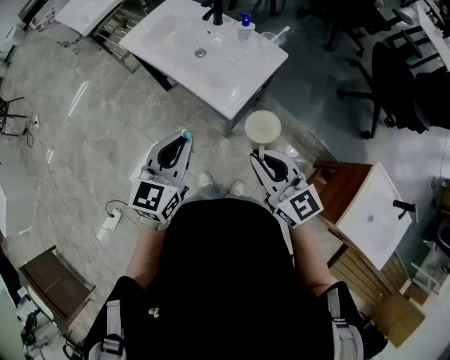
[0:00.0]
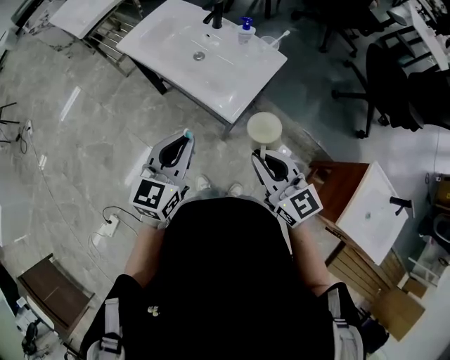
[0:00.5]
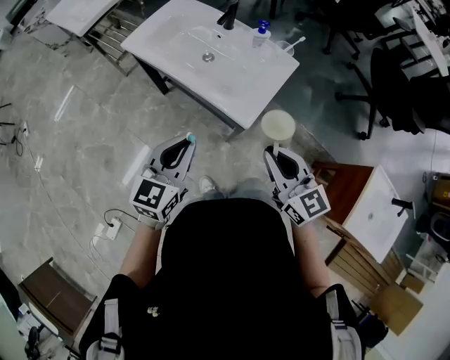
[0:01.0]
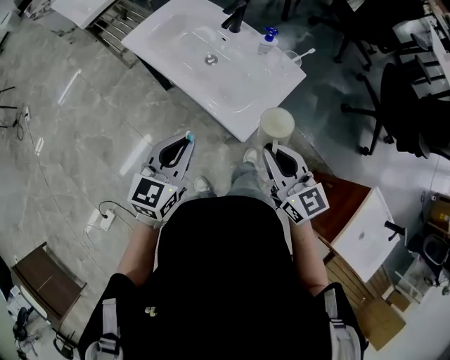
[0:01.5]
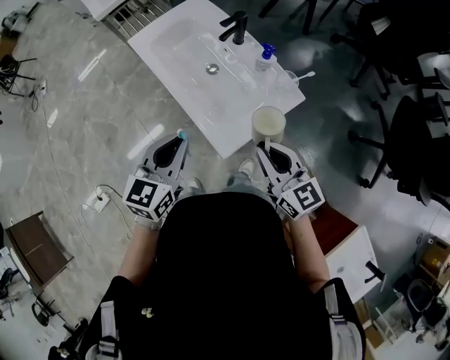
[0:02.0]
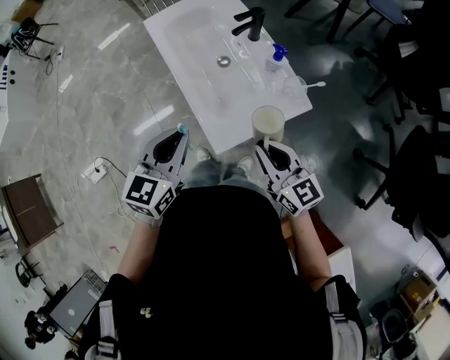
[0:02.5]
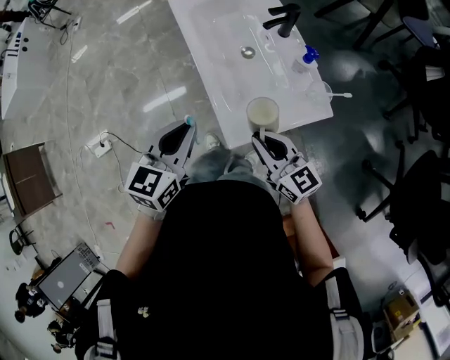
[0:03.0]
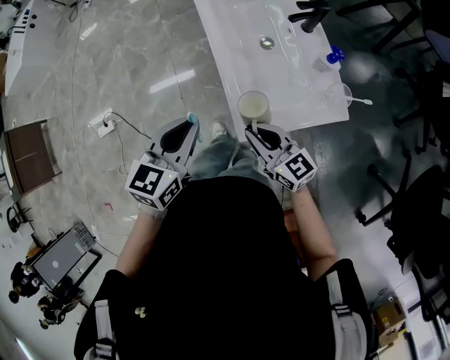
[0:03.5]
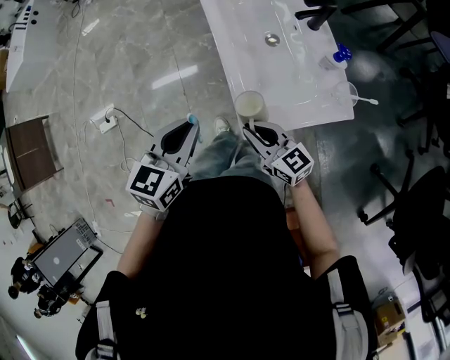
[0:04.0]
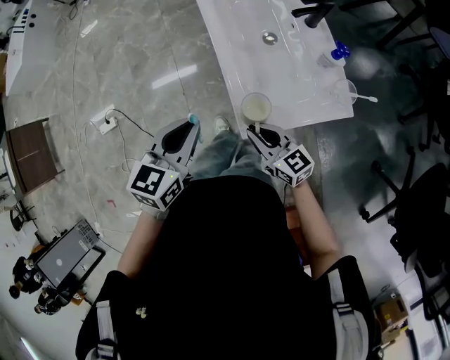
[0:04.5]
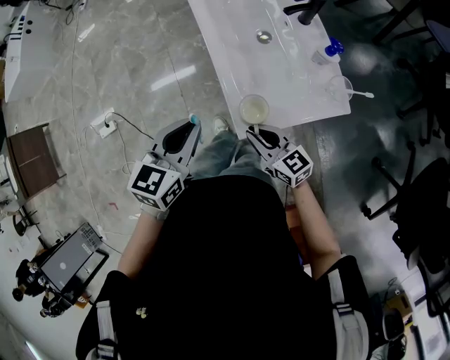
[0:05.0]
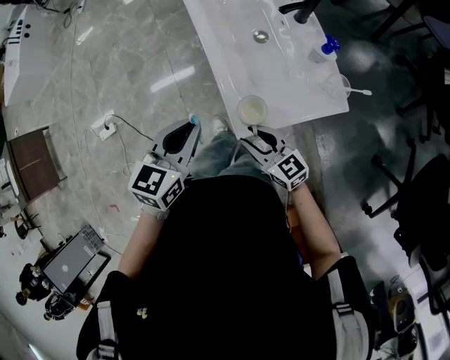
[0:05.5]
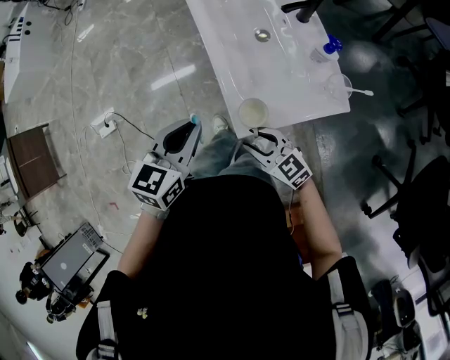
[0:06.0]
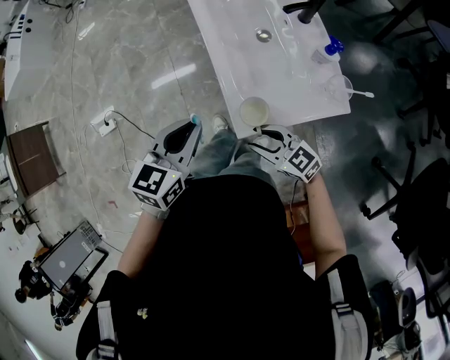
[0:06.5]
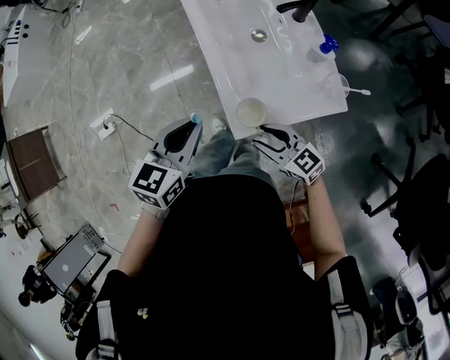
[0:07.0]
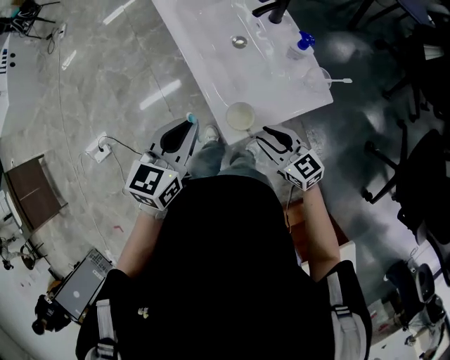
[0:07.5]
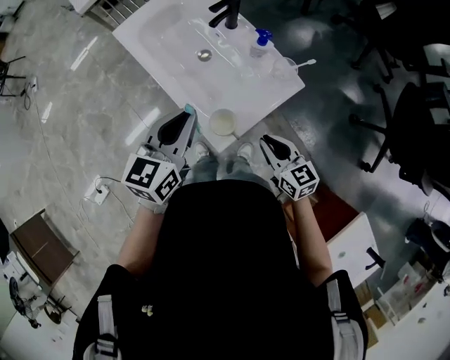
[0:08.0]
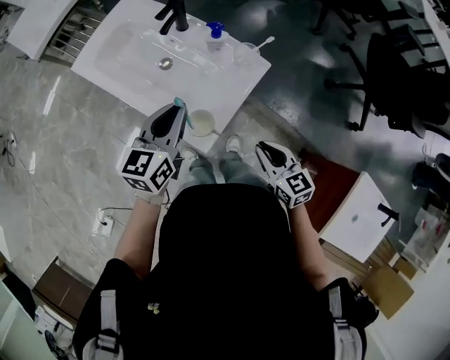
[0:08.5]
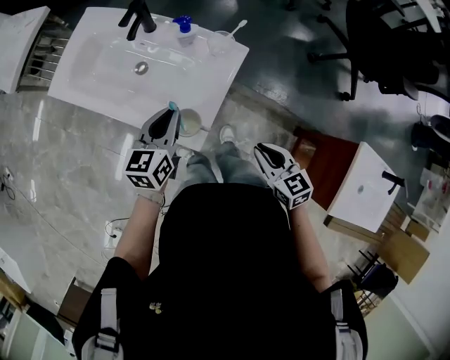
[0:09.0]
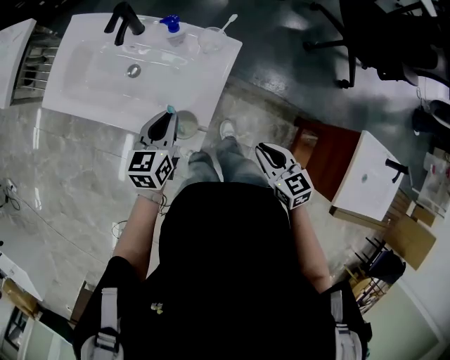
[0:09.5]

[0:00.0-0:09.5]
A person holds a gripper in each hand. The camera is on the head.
0:00.0 to 0:02.0: The two grippers go about 15 cm forward.
0:02.0 to 0:04.0: The right gripper travels downward by some 15 cm, and turns by approximately 40 degrees, while the left gripper shifts by about 5 cm, and changes its angle by about 20 degrees.
0:04.0 to 0:05.5: The right gripper opens its fingers.
0:05.5 to 0:07.5: The right gripper heads to the right, covering about 10 cm.
0:07.5 to 0:09.5: The left gripper shifts by roughly 15 cm, and swivels about 30 degrees, while the right gripper changes place by roughly 15 cm, swivels roughly 60 degrees, and closes up.

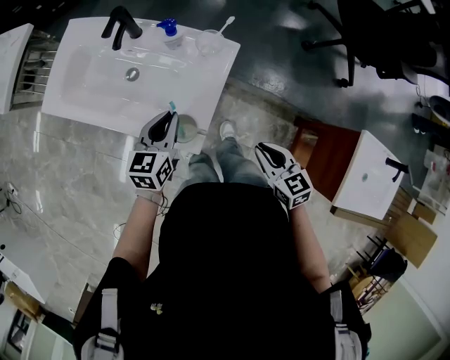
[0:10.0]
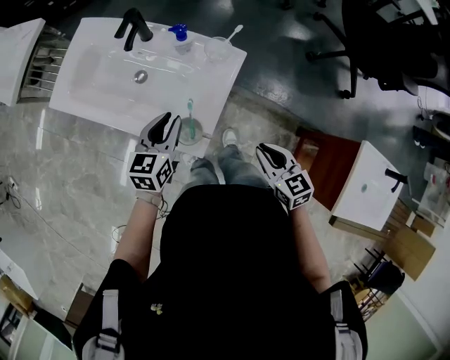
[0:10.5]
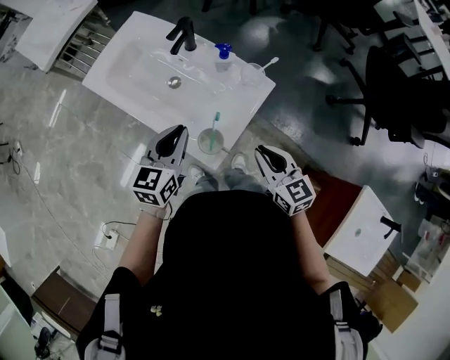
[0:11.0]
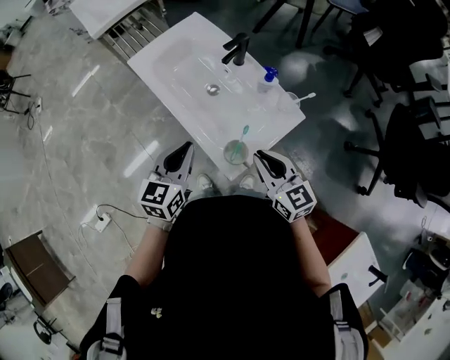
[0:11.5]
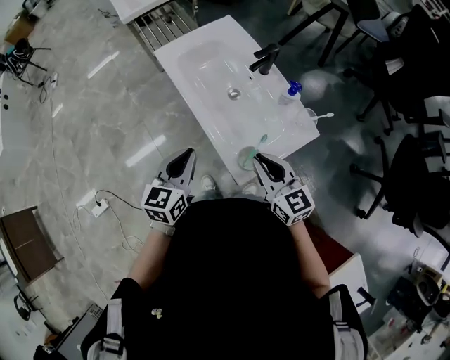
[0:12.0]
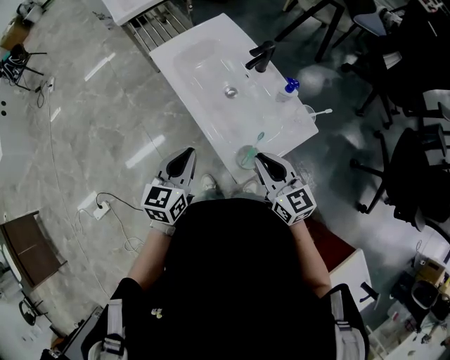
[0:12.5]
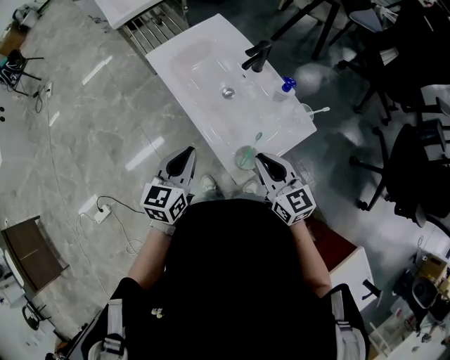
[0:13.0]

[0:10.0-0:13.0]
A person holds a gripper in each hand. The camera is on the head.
0:10.0 to 0:11.5: The right gripper ends up about 20 cm from where it was, and swivels some 40 degrees. Meanwhile the left gripper moves roughly 15 cm, and turns by approximately 30 degrees.
0:11.5 to 0:13.0: The grippers stay close to where they were, moving slightly.

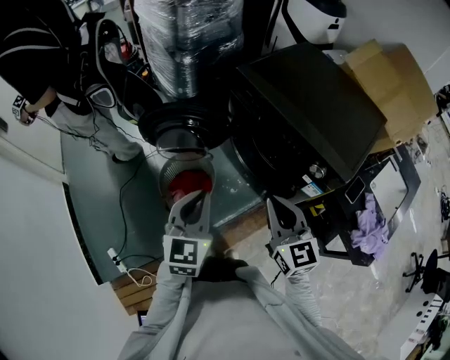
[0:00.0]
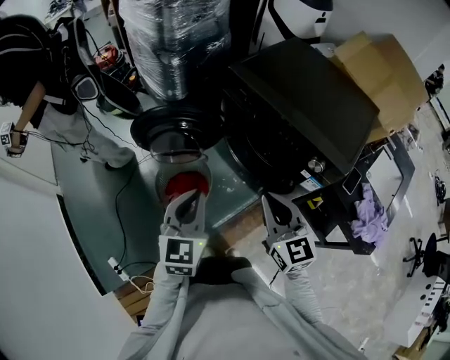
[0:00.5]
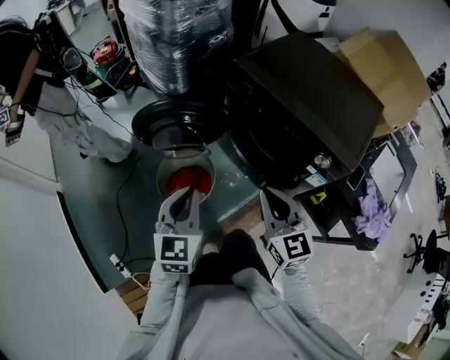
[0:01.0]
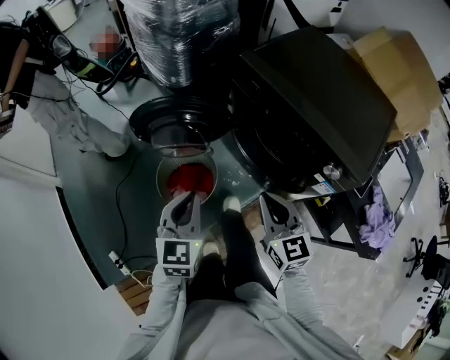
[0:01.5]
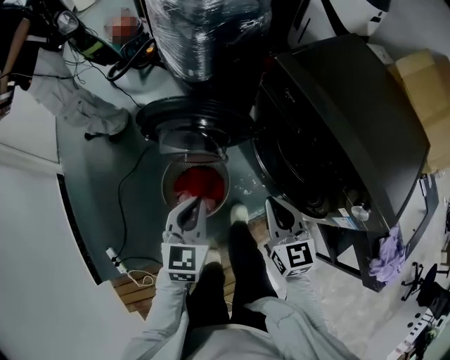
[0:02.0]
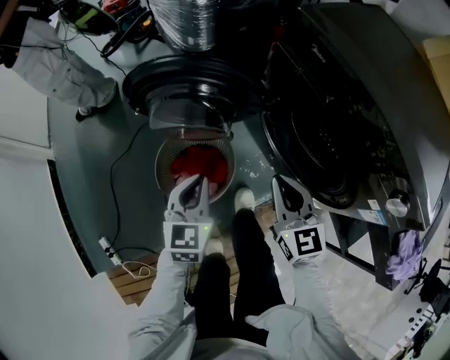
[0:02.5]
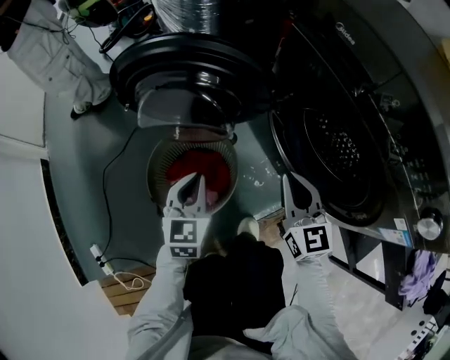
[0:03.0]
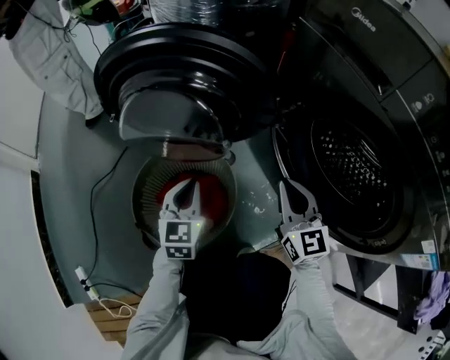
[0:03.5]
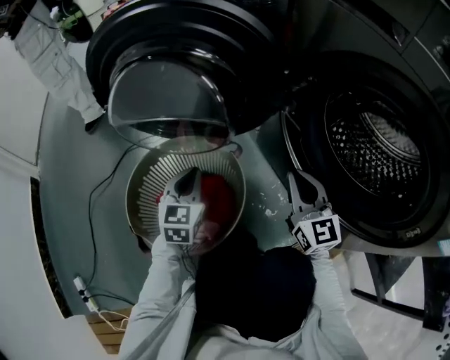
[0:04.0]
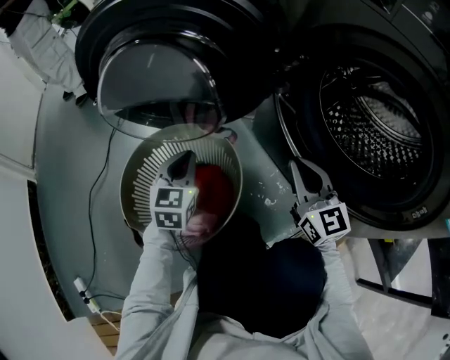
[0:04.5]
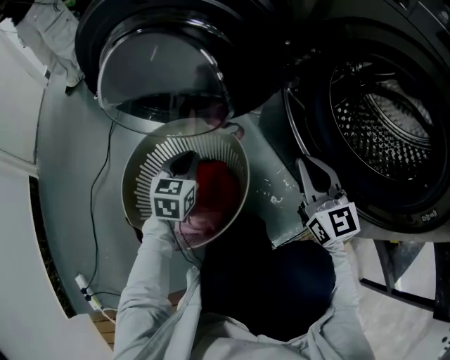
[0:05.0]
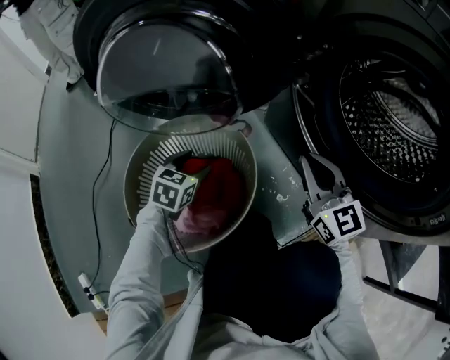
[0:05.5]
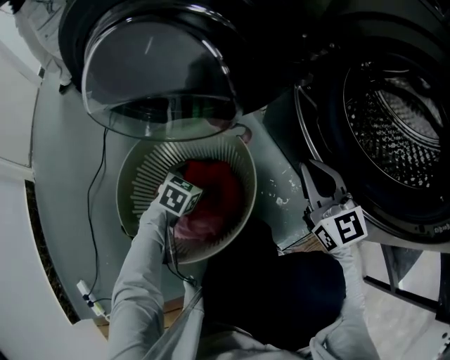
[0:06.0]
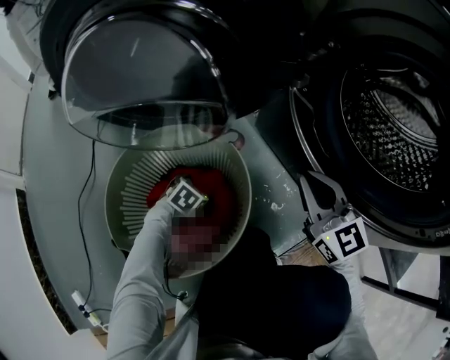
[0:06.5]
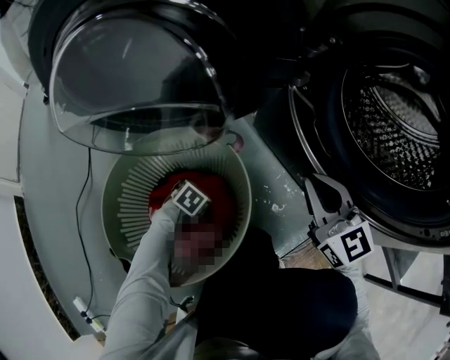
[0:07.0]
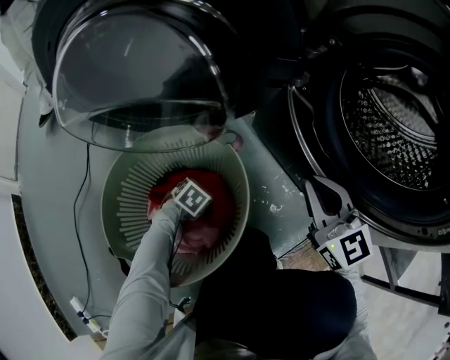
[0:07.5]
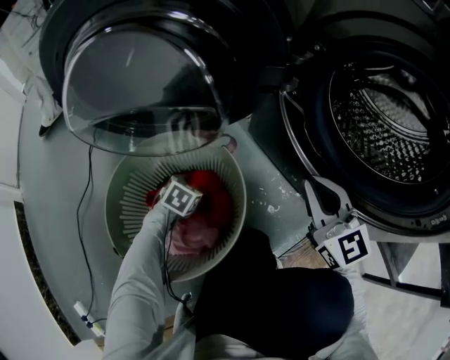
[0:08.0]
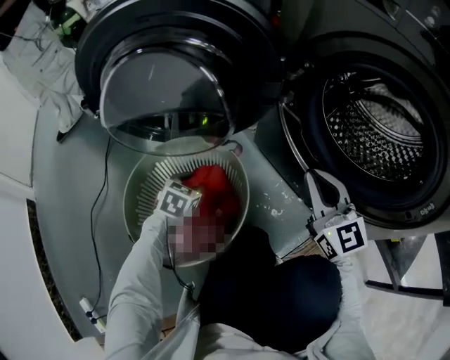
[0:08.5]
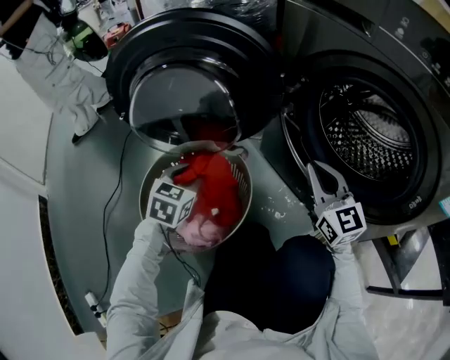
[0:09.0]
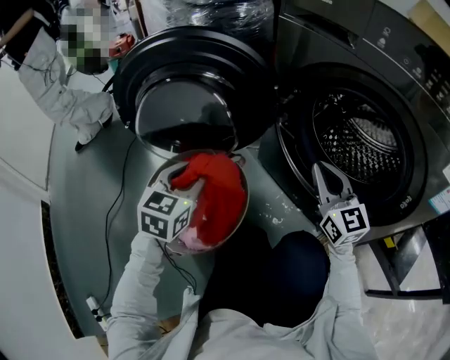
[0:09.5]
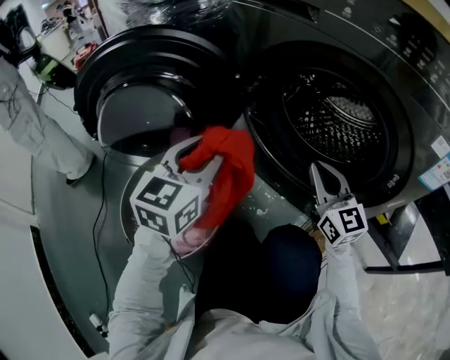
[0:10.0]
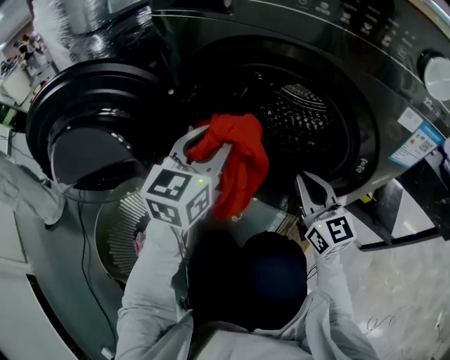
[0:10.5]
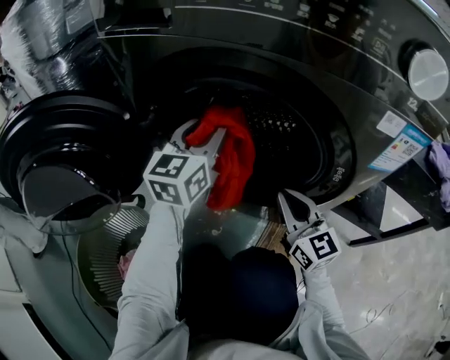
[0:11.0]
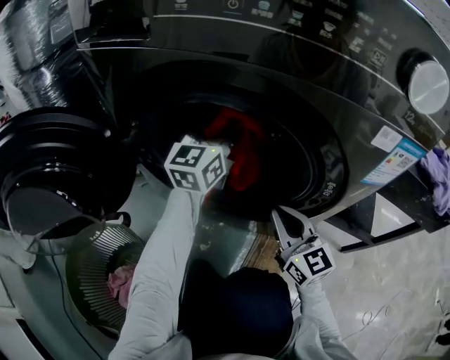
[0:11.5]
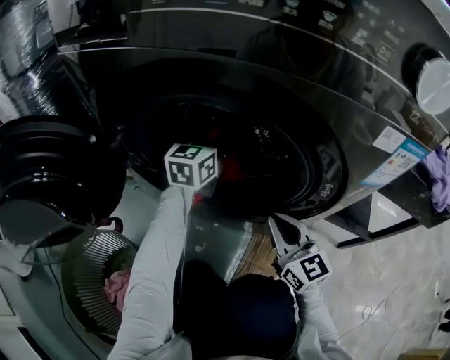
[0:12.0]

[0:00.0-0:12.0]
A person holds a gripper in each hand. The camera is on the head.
0:00.0 to 0:02.0: Both grippers move downward, forward and to the left, about 20 cm.
0:02.0 to 0:04.0: The grippers both shift downward by roughly 40 cm.
0:04.0 to 0:06.0: The left gripper shifts roughly 20 cm downward, tips its fingers downward by roughly 30 degrees, and opens its fingers.
0:06.0 to 0:08.0: The left gripper closes up.
0:08.0 to 0:10.0: The left gripper heads upward, covering roughly 40 cm, and angles its fingers upward, by approximately 50 degrees, while the right gripper is displaced to the right and upward by about 10 cm.
0:10.0 to 0:12.0: The left gripper is displaced forward and to the right by approximately 40 cm, and swivels some 30 degrees; the right gripper travels to the right and downward by some 15 cm, and swivels approximately 20 degrees.

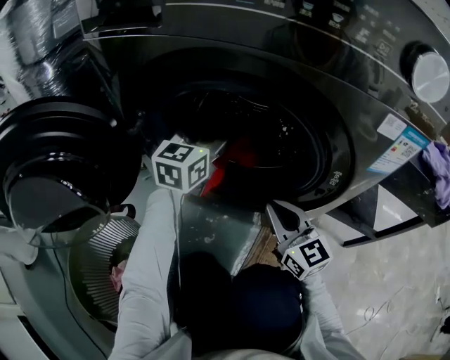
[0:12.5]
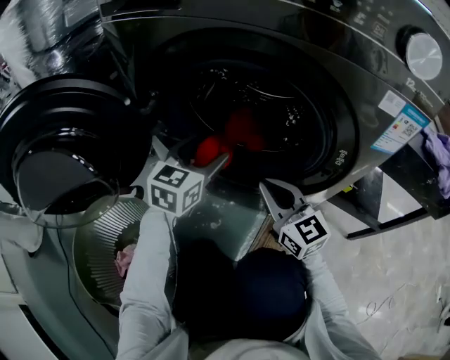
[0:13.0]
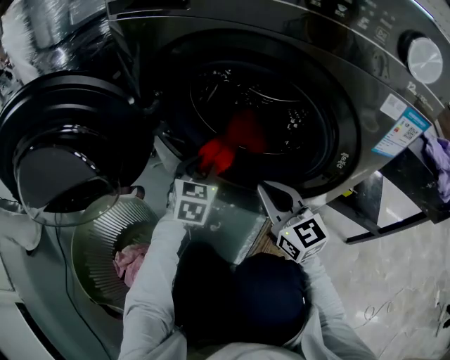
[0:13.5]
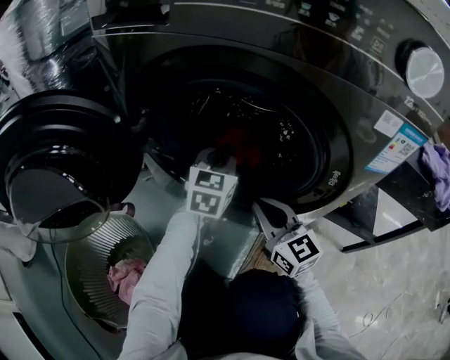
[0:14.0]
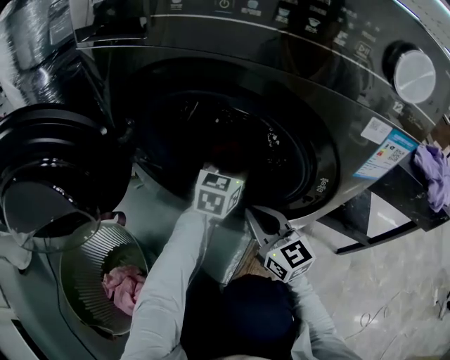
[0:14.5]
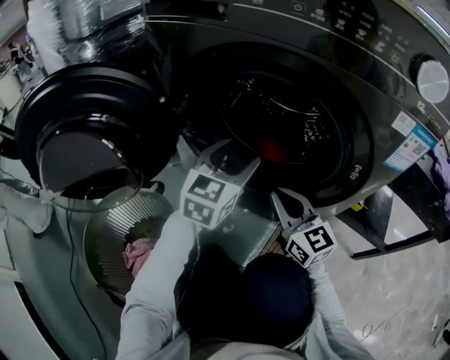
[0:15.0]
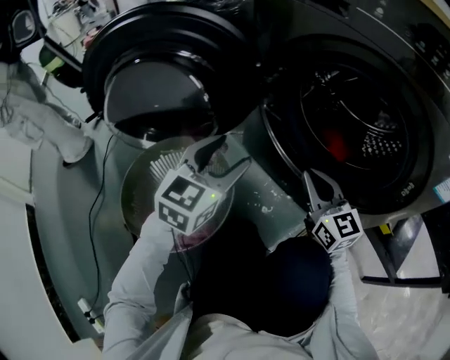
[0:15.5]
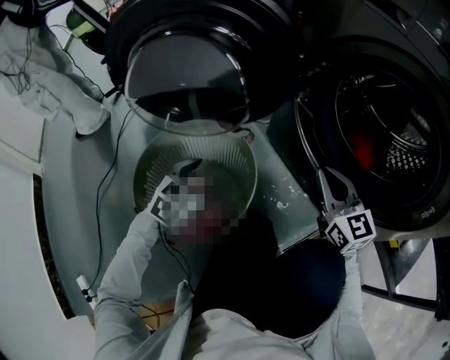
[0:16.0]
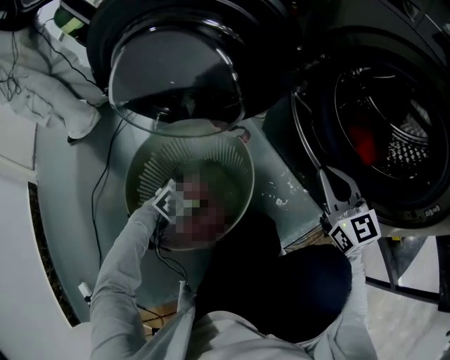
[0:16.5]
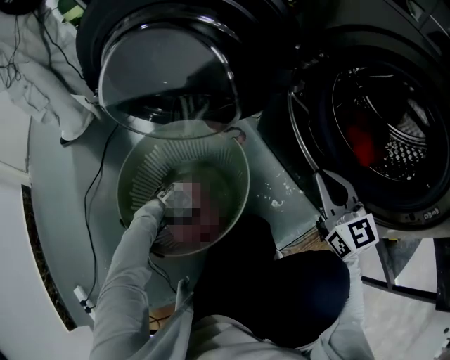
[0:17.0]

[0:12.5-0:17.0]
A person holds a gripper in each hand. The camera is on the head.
0:12.5 to 0:14.5: The left gripper moves to the right and downward, roughly 10 cm, and closes, then opens again.
0:14.5 to 0:17.0: The right gripper shifts by roughly 15 cm, and changes its angle by approximately 20 degrees. The left gripper shifts by about 70 cm, tips its fingers downward by some 70 degrees, and opens up.
